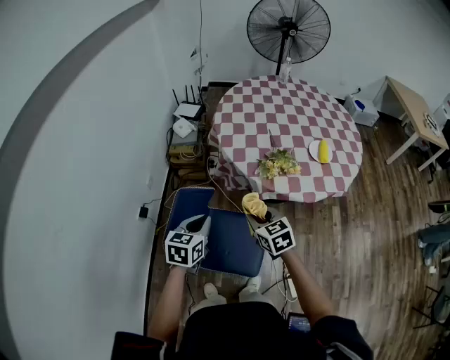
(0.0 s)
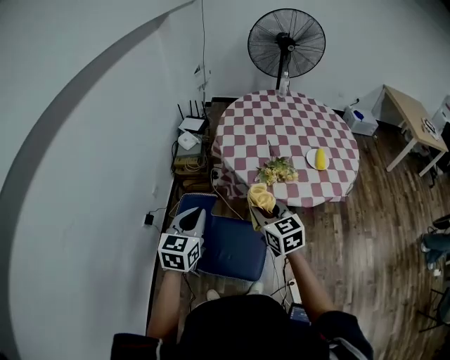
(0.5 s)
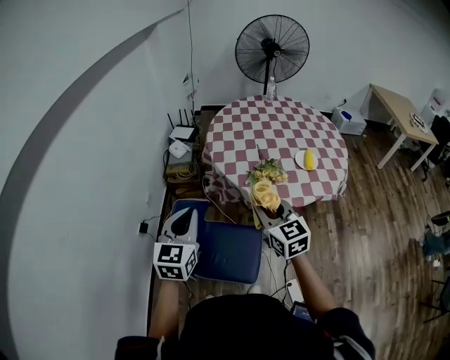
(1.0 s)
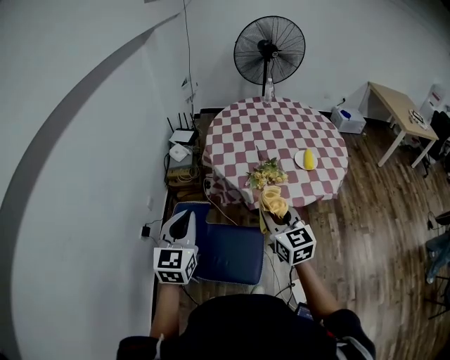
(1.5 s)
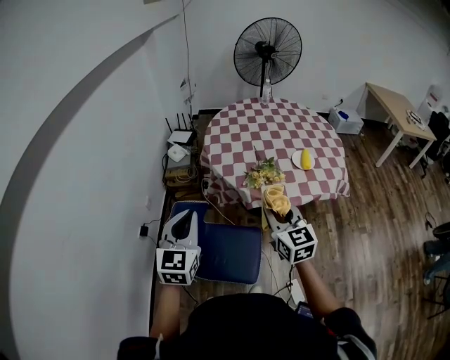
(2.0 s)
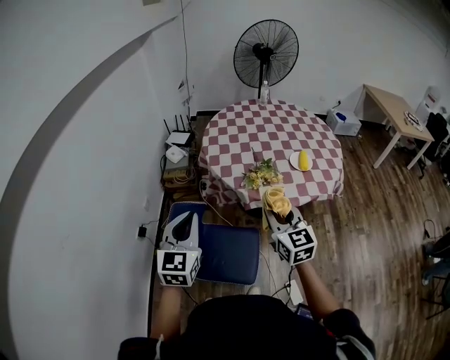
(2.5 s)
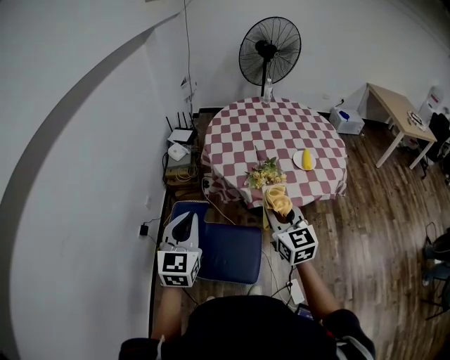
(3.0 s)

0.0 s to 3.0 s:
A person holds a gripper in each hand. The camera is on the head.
0.0 to 1.5 s: The right gripper moves upward and to the right, roughly 15 cm, and rotates roughly 30 degrees; the left gripper heads upward, covering about 15 cm, and rotates some 30 degrees.
1.5 to 3.0 s: There are only small adjustments of the grippers.

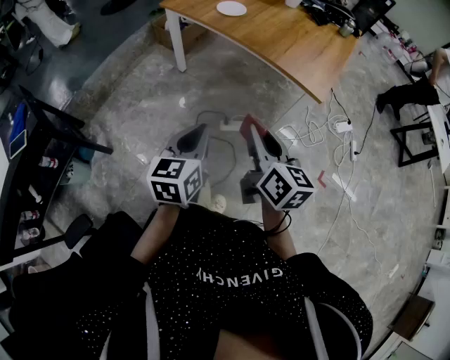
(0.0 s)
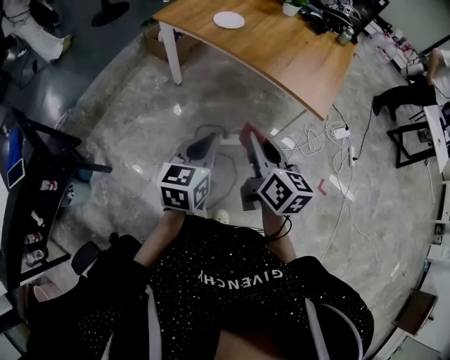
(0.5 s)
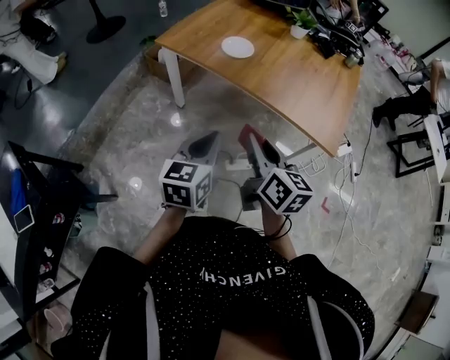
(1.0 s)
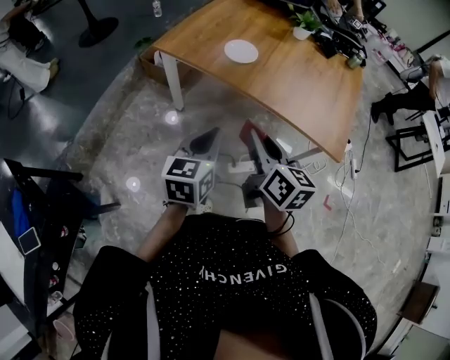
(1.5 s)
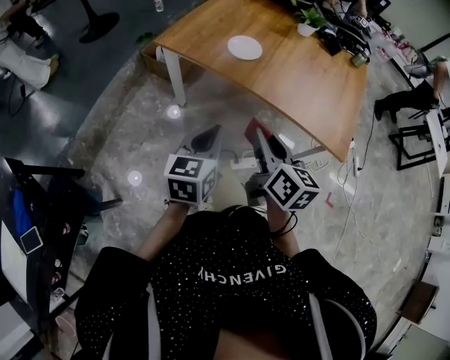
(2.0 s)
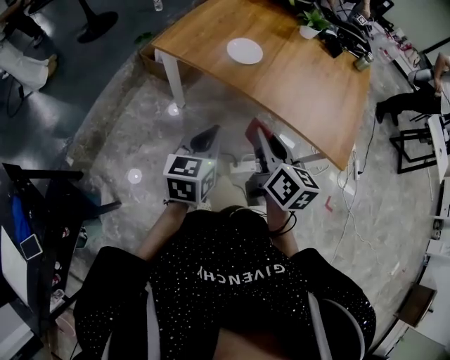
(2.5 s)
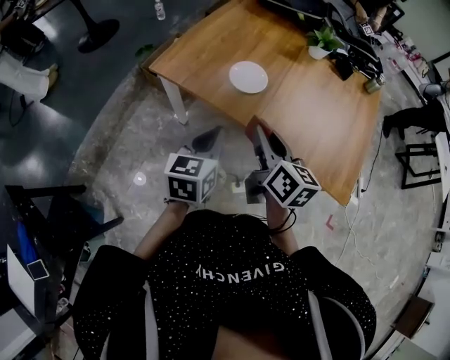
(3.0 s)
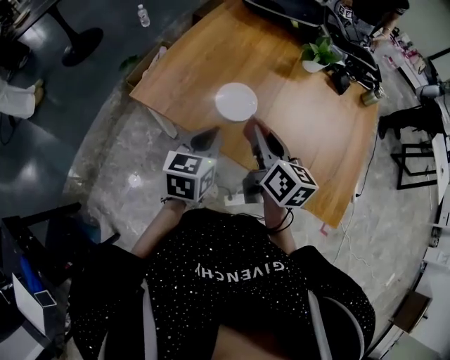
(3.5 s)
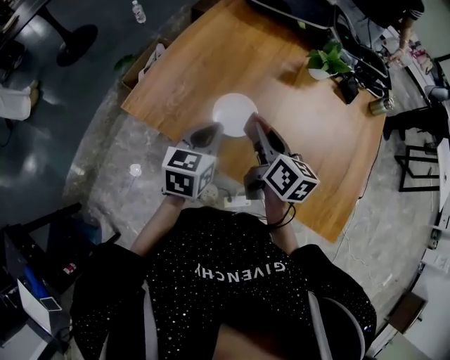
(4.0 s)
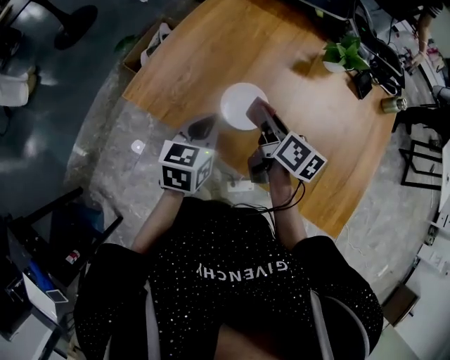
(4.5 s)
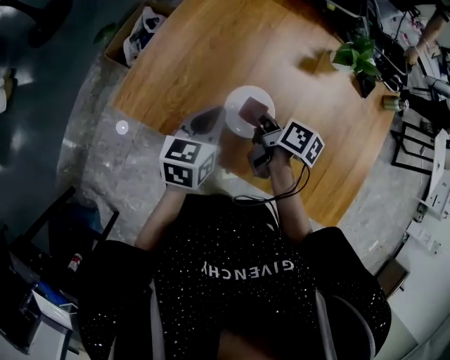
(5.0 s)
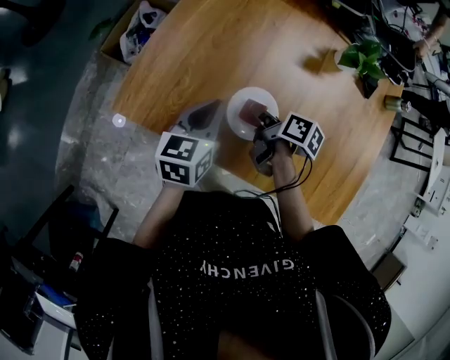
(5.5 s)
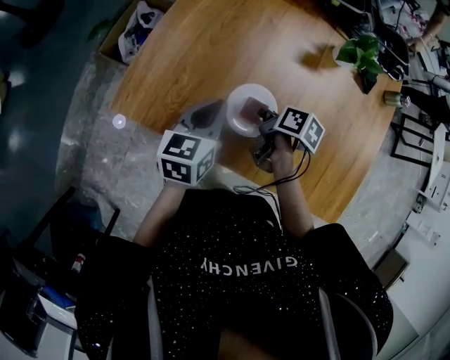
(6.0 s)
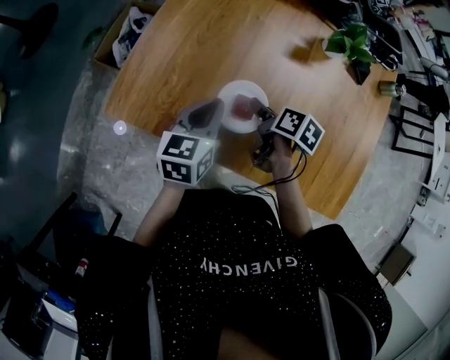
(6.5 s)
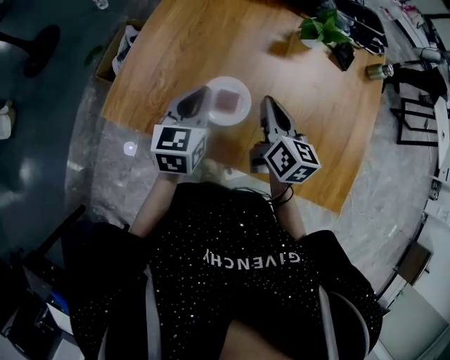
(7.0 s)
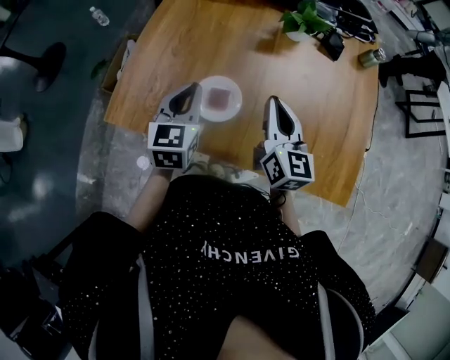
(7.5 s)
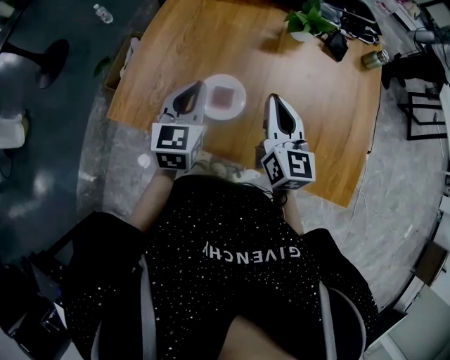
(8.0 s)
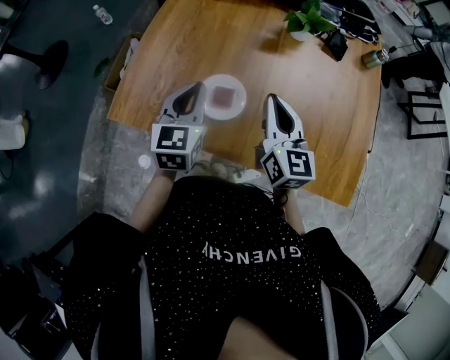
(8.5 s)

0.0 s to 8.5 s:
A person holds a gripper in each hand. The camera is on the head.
0.0 to 2.0 s: The grippers both shift forward and to the left by roughly 35 cm.
2.0 to 4.0 s: The two grippers travel together, forward, about 40 cm.
4.0 to 6.5 s: The right gripper goes about 20 cm downward and forward, angles its fingers downward, by some 30 degrees, and opens; the left gripper moves forward and downward, approximately 10 cm.
6.5 to 8.5 s: The left gripper travels upward by roughly 10 cm, and turns by roughly 20 degrees, while the right gripper travels upward by some 20 cm, angles its fingers upward, by approximately 40 degrees, and closes.

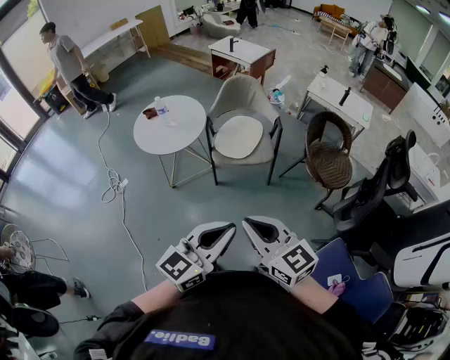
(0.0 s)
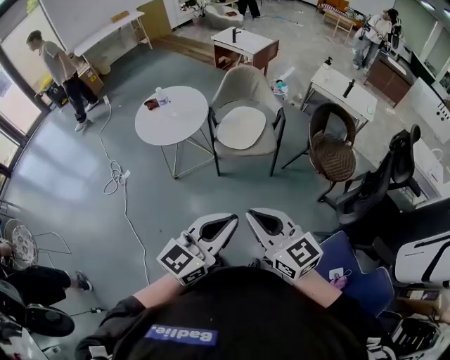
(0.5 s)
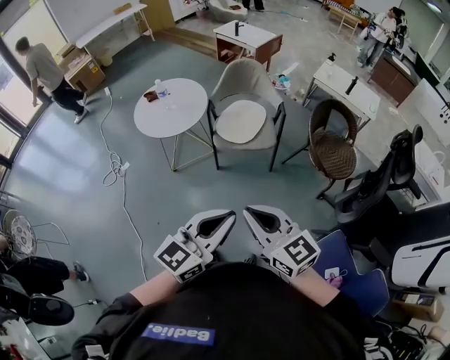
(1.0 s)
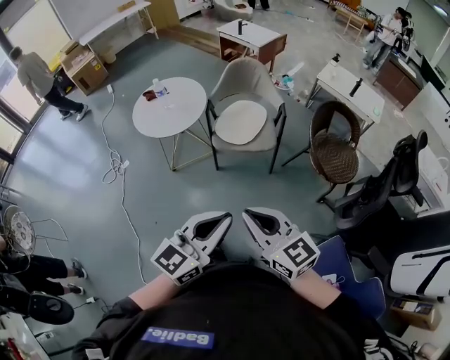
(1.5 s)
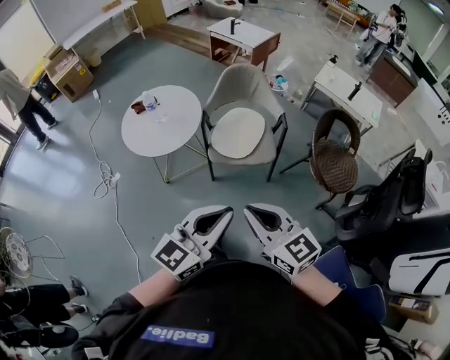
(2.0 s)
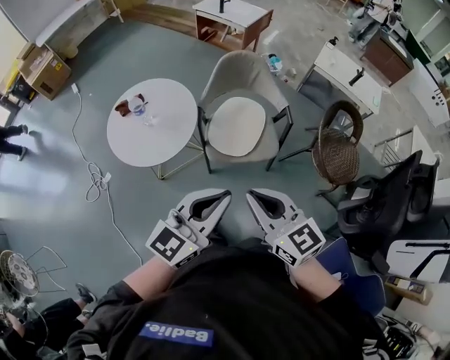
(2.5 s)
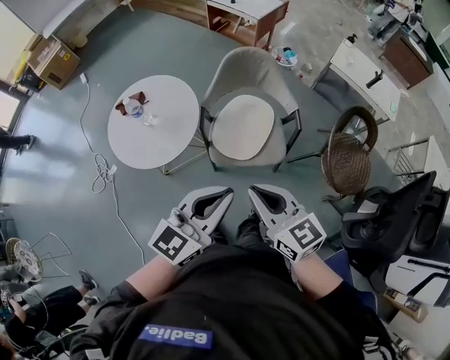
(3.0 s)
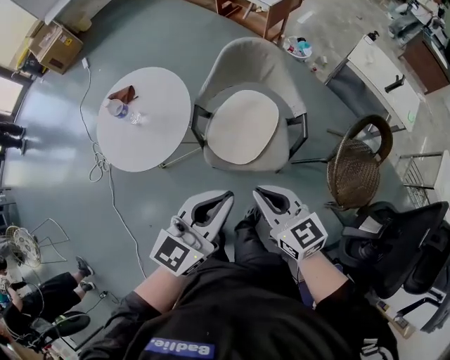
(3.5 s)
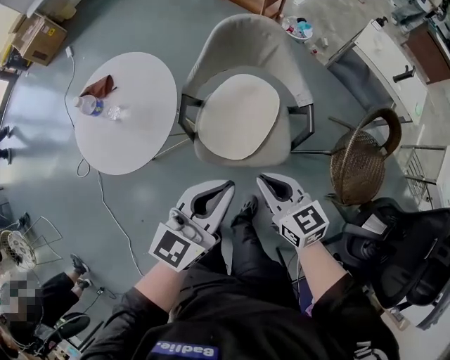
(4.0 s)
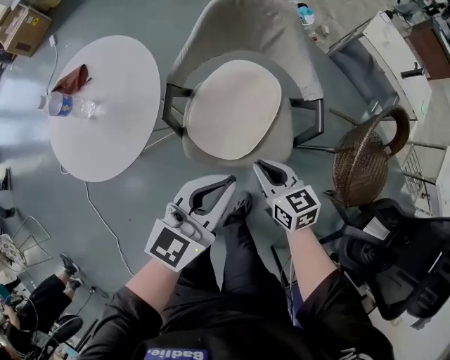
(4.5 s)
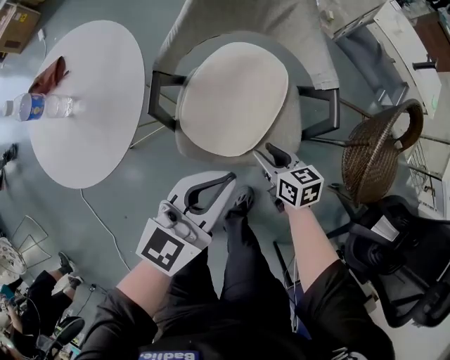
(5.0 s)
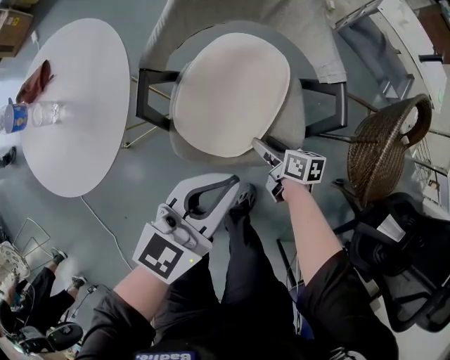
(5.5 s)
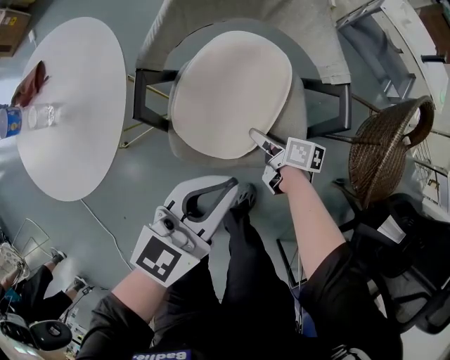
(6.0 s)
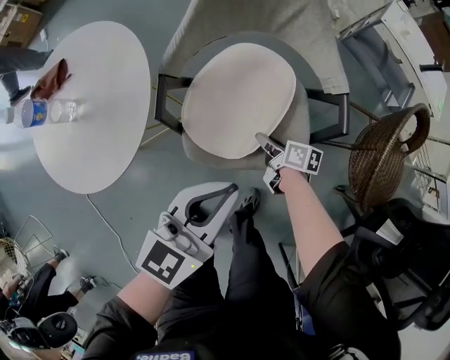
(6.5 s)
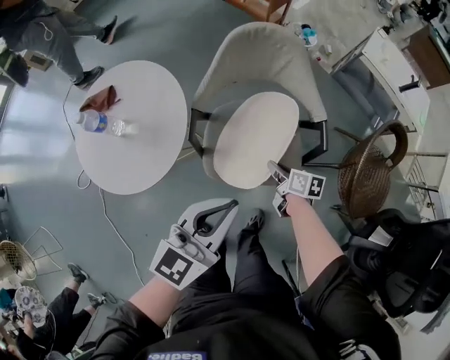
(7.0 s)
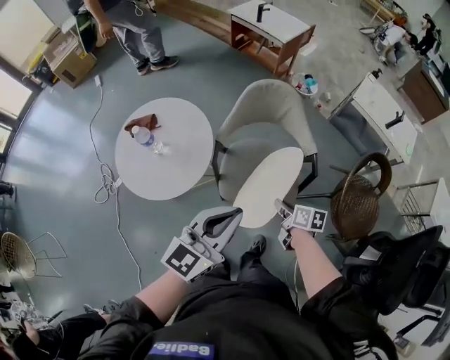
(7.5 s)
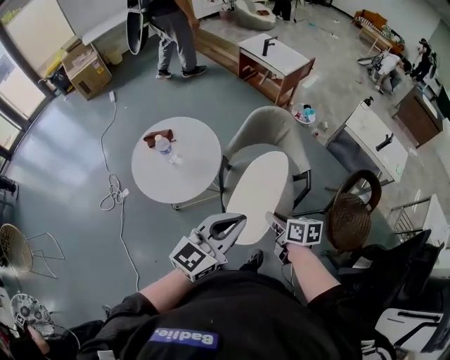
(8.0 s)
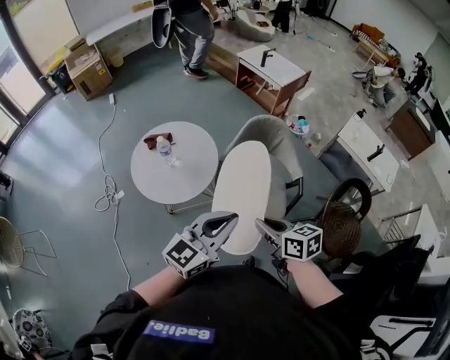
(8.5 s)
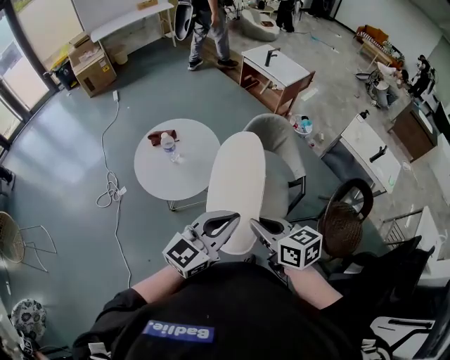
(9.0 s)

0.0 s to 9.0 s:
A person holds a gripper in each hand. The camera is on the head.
0.0 to 2.0 s: The grippers both shift forward by some 15 cm.
2.0 to 4.5 s: The left gripper heads forward and downward, covering some 40 cm; the right gripper shifts approximately 50 cm downward and forward, and rotates roughly 30 degrees.
4.5 to 7.0 s: The right gripper travels forward by approximately 5 cm, goes downward and returns, about 20 cm each way, turns by approximately 40 degrees, and opens and closes again. Meanwhile the left gripper moves upward, roughly 5 cm.
7.0 to 9.0 s: The right gripper heads upward and backward, covering roughly 50 cm, and turns by roughly 40 degrees. The left gripper heads upward and backward, covering approximately 25 cm.

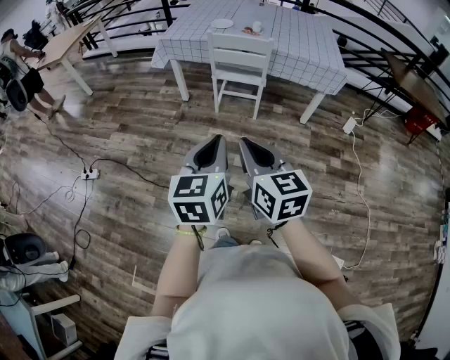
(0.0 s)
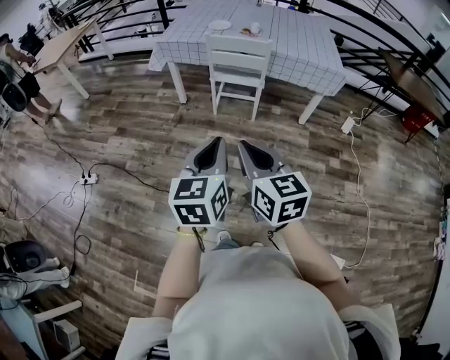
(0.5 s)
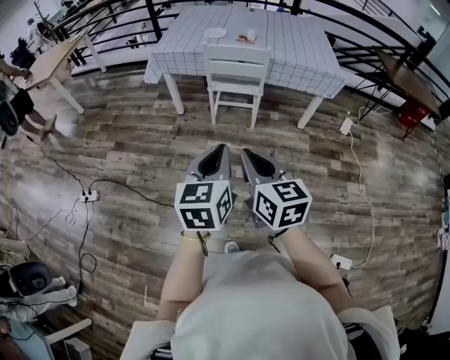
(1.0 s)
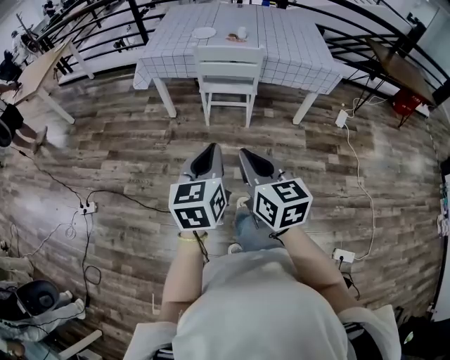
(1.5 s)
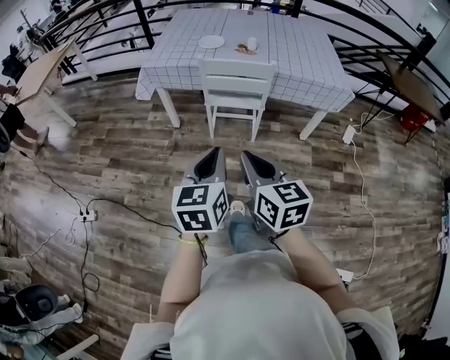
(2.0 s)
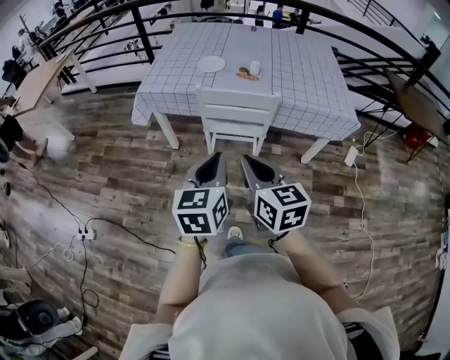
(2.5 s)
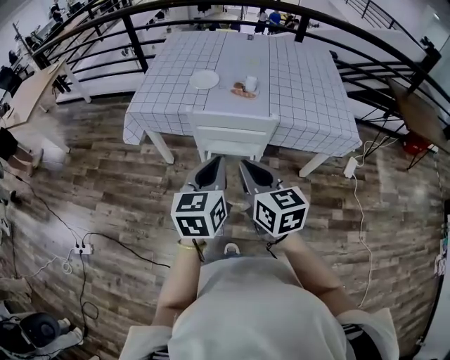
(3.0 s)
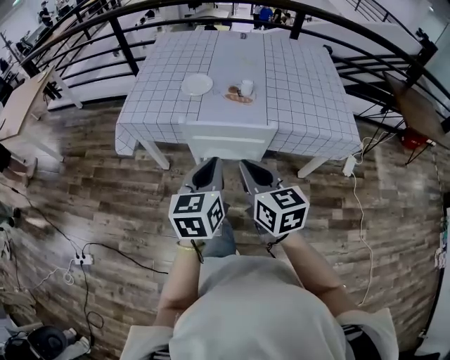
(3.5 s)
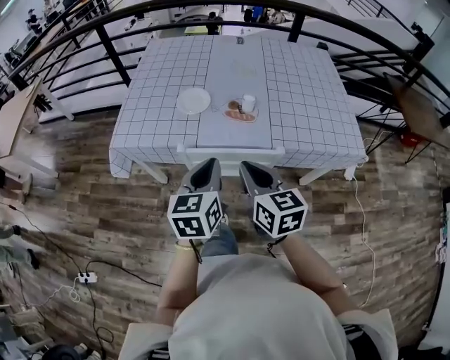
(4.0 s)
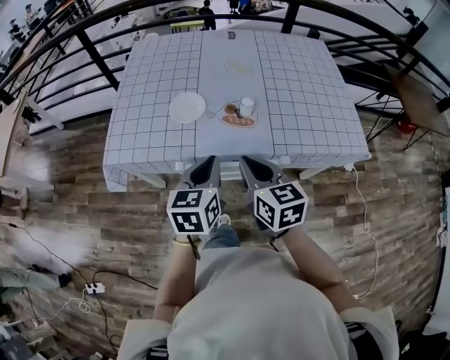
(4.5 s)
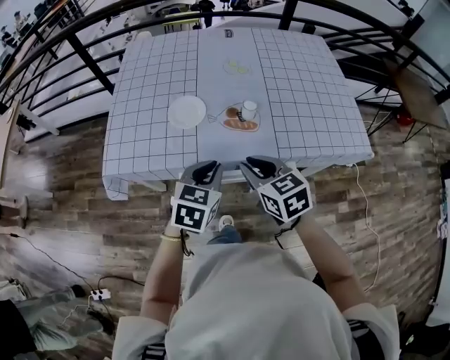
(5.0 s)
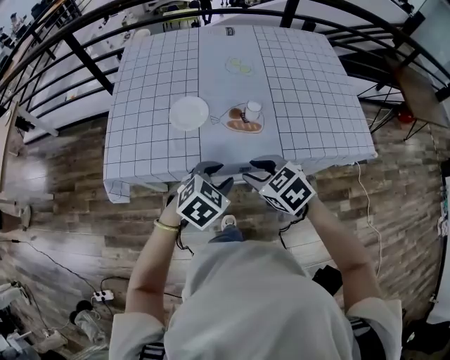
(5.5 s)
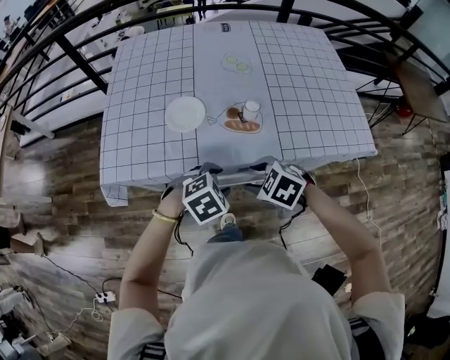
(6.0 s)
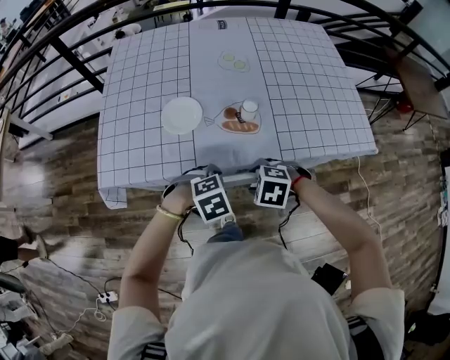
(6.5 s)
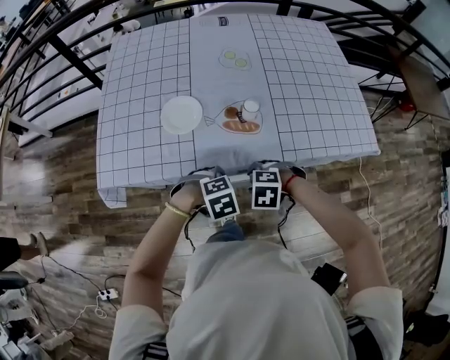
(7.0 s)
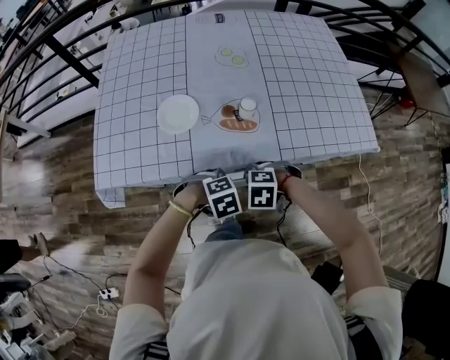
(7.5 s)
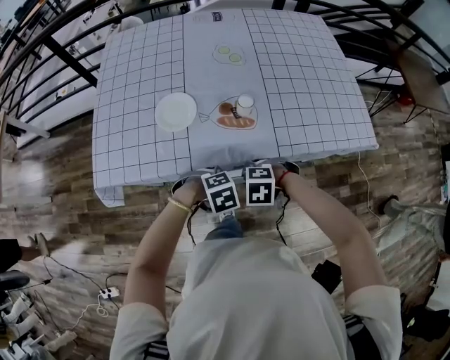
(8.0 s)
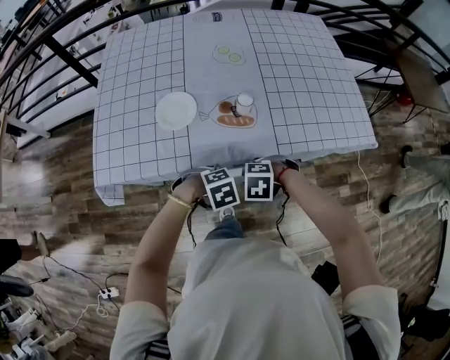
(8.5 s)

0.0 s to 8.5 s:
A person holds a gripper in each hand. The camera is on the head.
0.0 to 2.0 s: Both grippers move forward, about 20 cm.
2.0 to 4.0 s: The two grippers travel together, forward, about 40 cm.
4.0 to 6.5 s: Both grippers move downward, roughly 20 cm. The left gripper points its fingers about 50 degrees further downward, and opens up, while the right gripper points its fingers roughly 60 degrees further downward, and opens up.
6.5 to 8.5 s: The right gripper closes; the left gripper is displaced downward by roughly 5 cm, and closes up.
